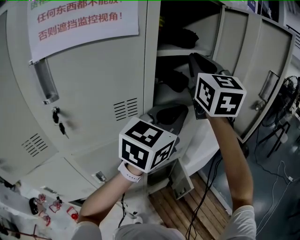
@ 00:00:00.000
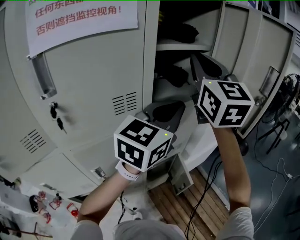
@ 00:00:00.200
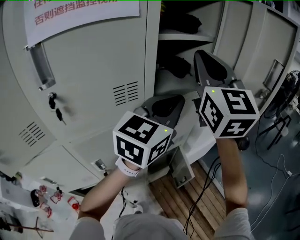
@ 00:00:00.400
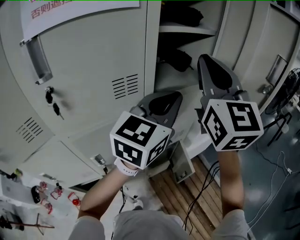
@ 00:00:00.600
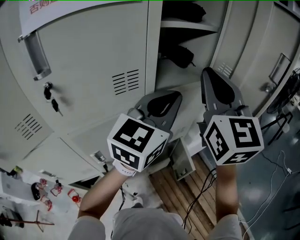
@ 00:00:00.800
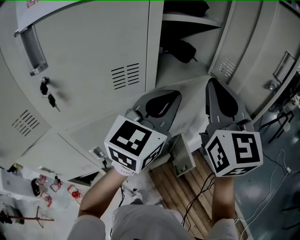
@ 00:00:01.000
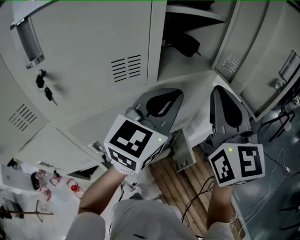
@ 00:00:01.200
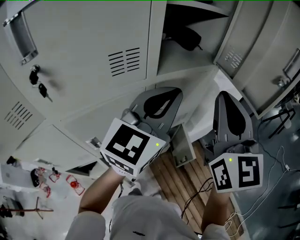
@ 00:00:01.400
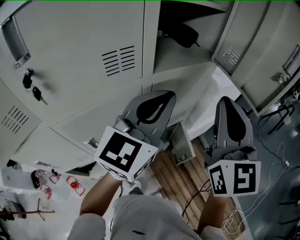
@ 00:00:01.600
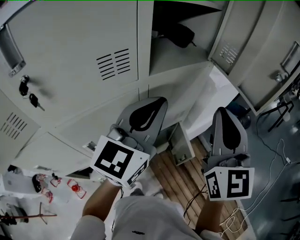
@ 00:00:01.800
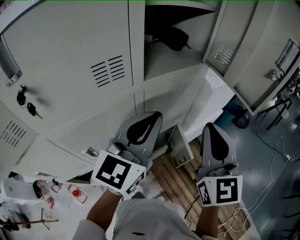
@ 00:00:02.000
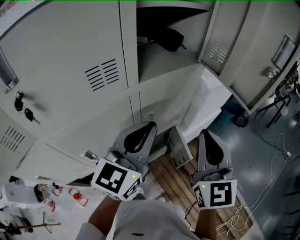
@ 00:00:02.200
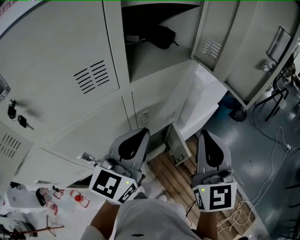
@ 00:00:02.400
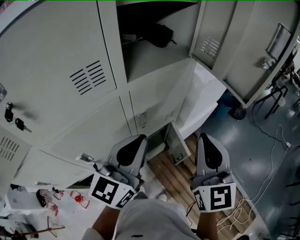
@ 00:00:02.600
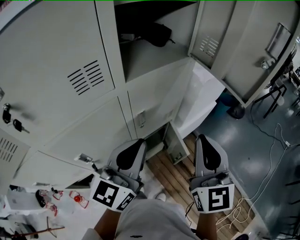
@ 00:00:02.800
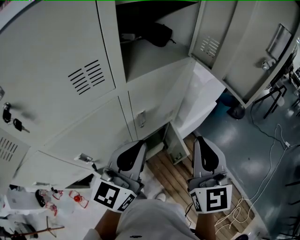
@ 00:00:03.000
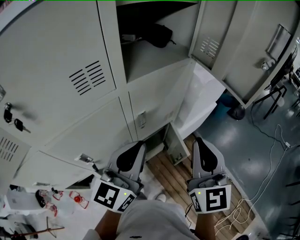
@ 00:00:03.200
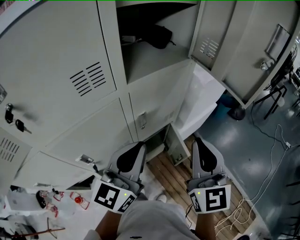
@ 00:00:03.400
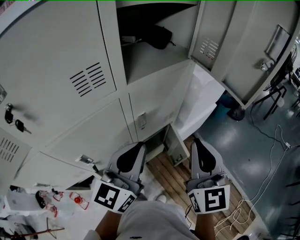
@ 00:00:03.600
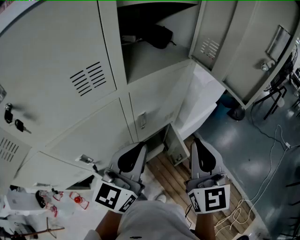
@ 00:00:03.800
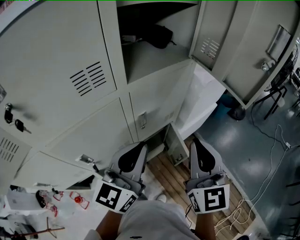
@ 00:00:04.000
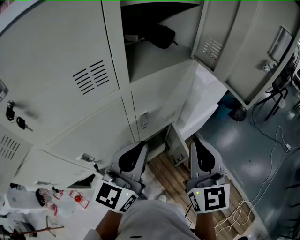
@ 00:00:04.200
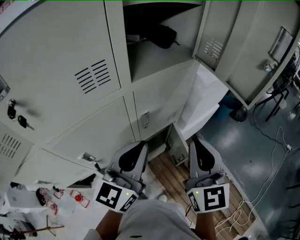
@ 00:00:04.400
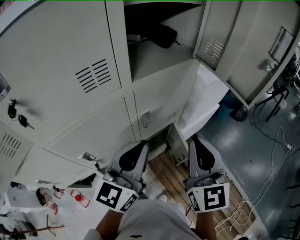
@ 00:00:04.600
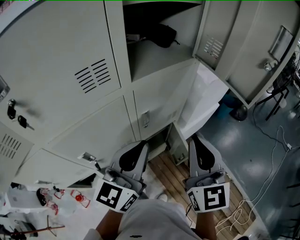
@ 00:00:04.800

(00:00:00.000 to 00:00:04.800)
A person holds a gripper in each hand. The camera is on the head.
00:00:00.000 - 00:00:01.600: The left gripper is displaced downward by about 5 cm; the right gripper heads downward, backward and to the right, covering roughly 25 cm.
00:00:01.600 - 00:00:03.200: The left gripper travels downward and backward by about 10 cm; the right gripper is displaced downward by some 10 cm.
00:00:03.200 - 00:00:04.800: The grippers make only small movements.

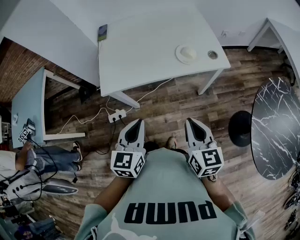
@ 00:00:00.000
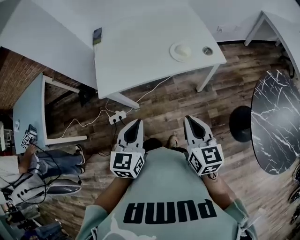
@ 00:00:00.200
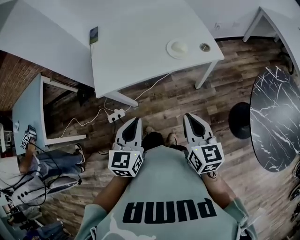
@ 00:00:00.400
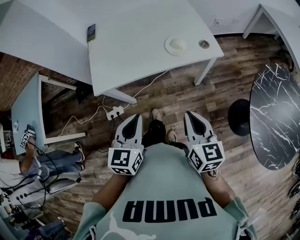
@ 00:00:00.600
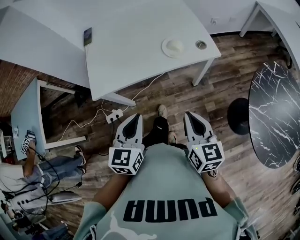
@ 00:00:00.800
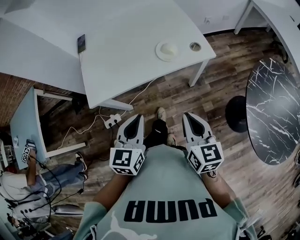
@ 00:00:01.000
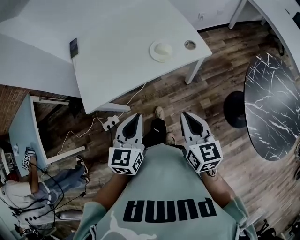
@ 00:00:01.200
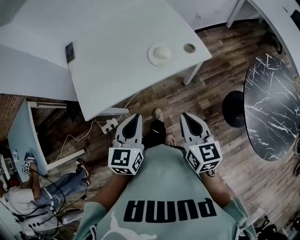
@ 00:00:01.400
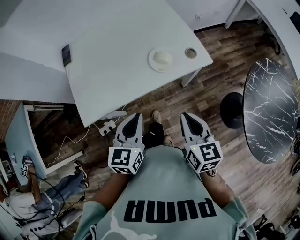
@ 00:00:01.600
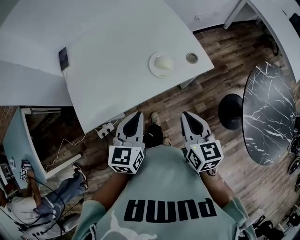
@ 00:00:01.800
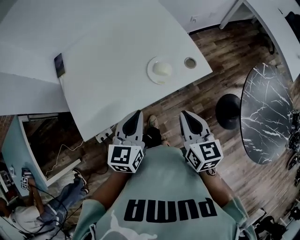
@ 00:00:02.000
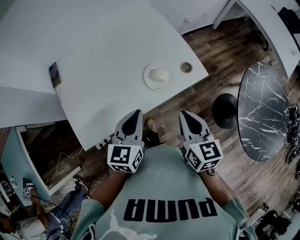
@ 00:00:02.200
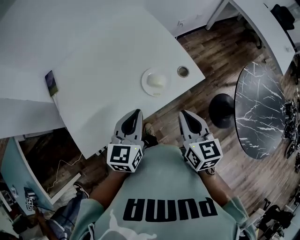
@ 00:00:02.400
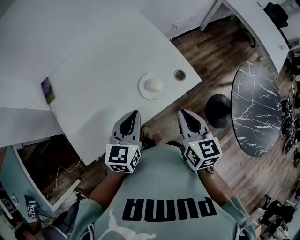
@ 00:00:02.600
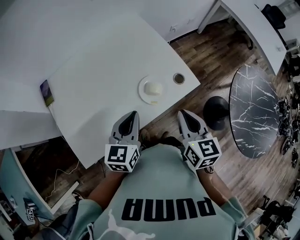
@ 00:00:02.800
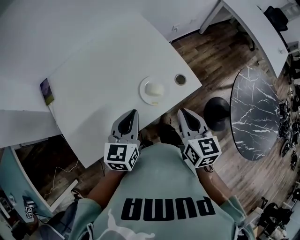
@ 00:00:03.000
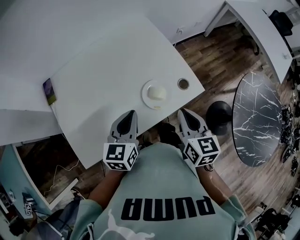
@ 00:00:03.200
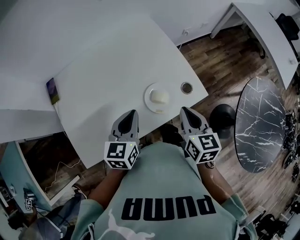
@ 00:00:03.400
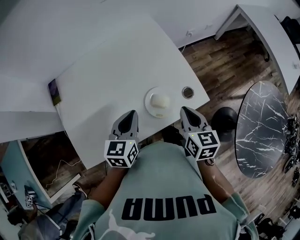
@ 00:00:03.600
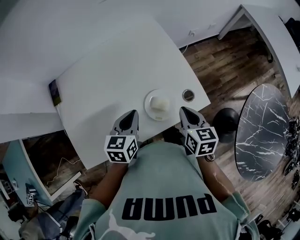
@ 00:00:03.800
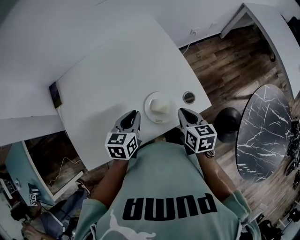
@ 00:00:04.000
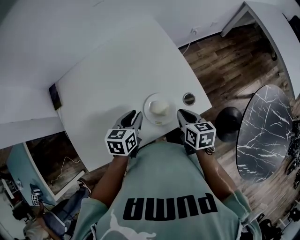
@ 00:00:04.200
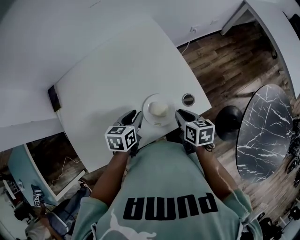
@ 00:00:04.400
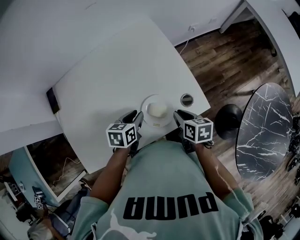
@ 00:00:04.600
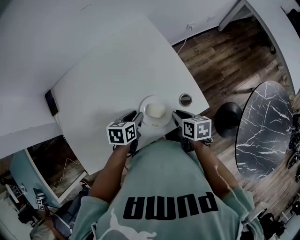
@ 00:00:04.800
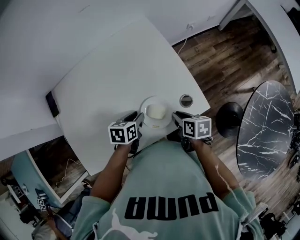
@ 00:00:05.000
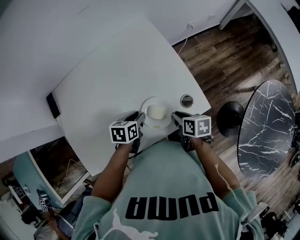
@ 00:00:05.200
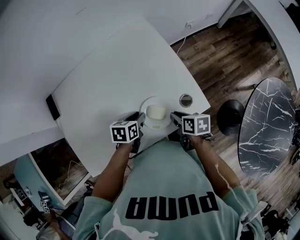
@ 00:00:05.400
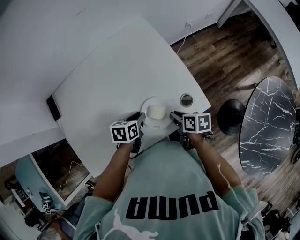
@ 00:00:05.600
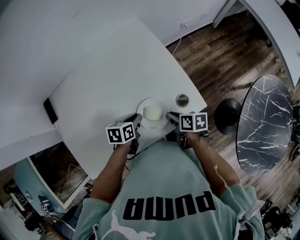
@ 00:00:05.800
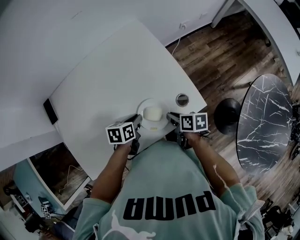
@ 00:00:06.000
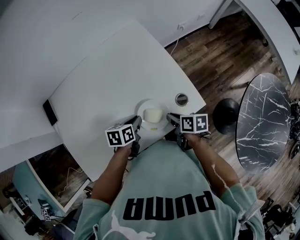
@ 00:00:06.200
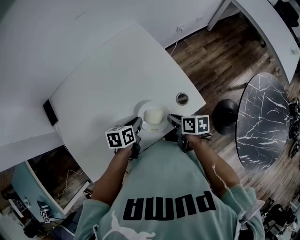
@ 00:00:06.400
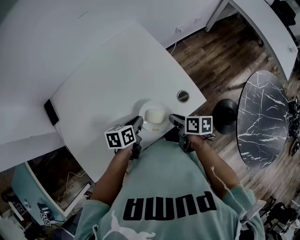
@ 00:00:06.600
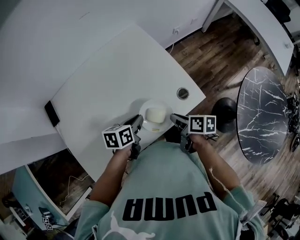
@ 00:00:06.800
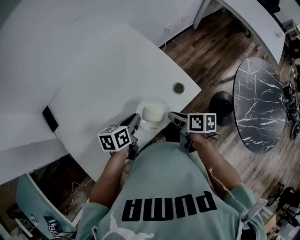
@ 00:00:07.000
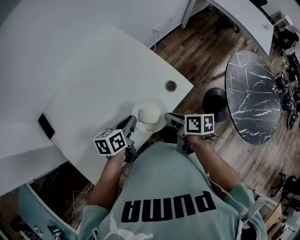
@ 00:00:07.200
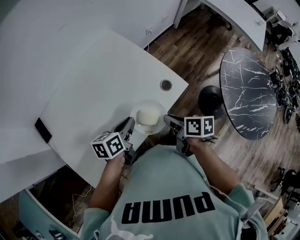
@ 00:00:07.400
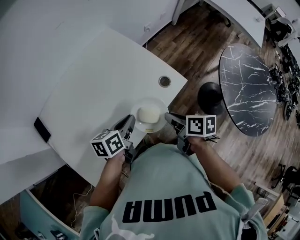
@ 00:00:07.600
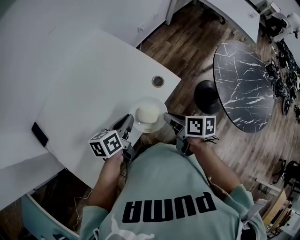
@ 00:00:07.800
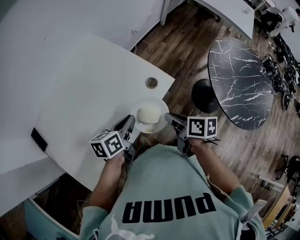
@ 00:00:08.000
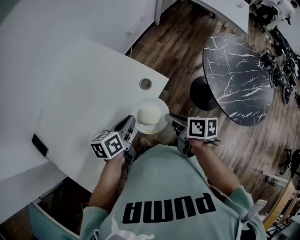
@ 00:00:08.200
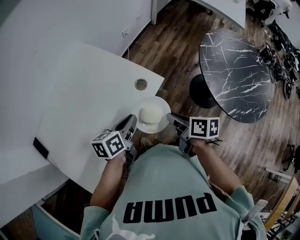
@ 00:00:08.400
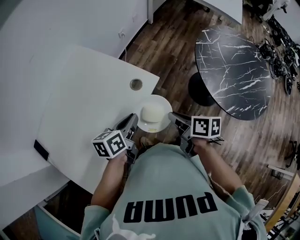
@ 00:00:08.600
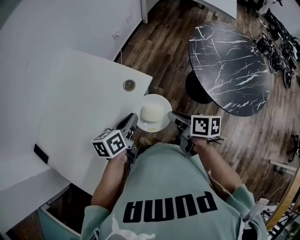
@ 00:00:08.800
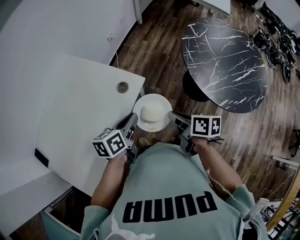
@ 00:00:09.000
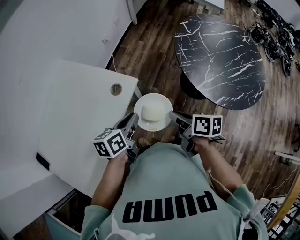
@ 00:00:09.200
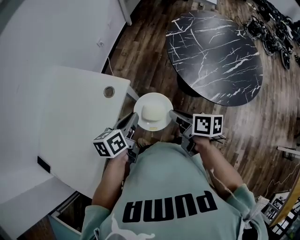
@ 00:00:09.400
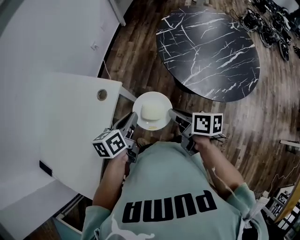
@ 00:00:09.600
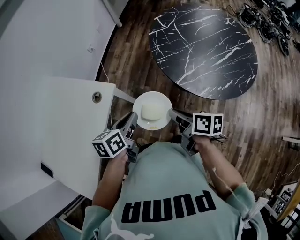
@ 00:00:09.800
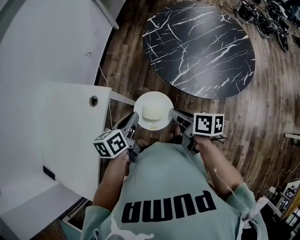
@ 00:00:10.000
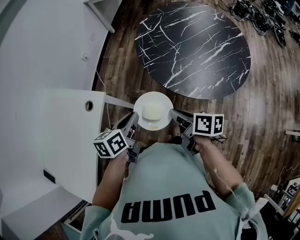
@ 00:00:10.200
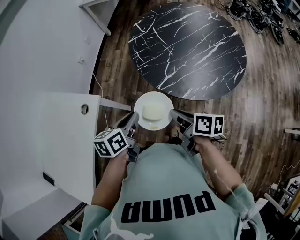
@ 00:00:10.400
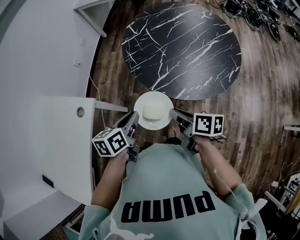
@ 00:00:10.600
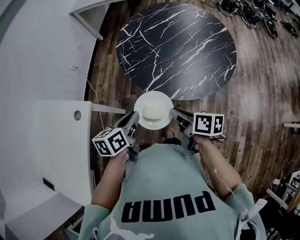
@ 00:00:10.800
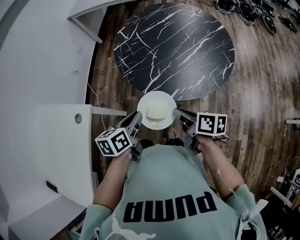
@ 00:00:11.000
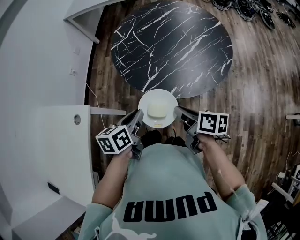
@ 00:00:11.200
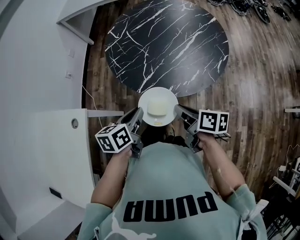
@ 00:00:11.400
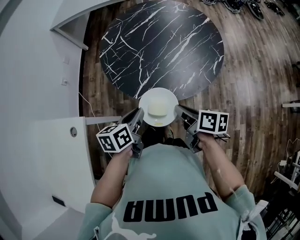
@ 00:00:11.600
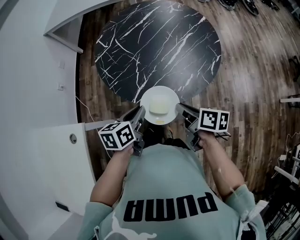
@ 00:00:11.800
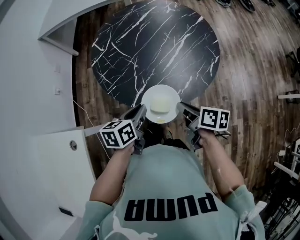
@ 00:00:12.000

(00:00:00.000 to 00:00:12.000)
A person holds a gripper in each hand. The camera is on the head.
00:00:00.000 - 00:00:01.600: The grippers both shift forward and to the right by roughly 15 cm.
00:00:01.600 - 00:00:03.000: The two grippers go some 15 cm forward.
00:00:03.000 - 00:00:04.400: The grippers both shift downward and forward by some 15 cm. The left gripper swivels some 30 degrees, and opens its fingers. Meanwhile the right gripper swivels approximately 30 degrees.
00:00:04.400 - 00:00:06.000: Both grippers move downward, roughly 5 cm. The right gripper rotates approximately 20 degrees.
00:00:06.000 - 00:00:07.600: Both grippers travel together upward and backward, about 15 cm. The right gripper rotates about 20 degrees. Meanwhile the left gripper swivels about 20 degrees.
00:00:07.600 - 00:00:09.000: The two grippers go approximately 20 cm to the right.
00:00:09.000 - 00:00:10.400: The grippers both shift to the right by about 25 cm.
00:00:10.400 - 00:00:12.000: Both grippers travel together to the right and forward, roughly 20 cm. The left gripper swivels roughly 20 degrees. The right gripper turns by approximately 20 degrees.

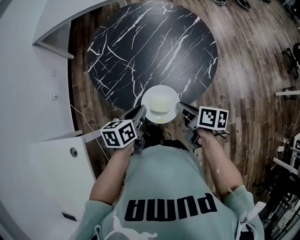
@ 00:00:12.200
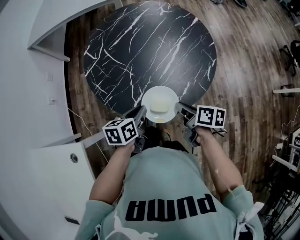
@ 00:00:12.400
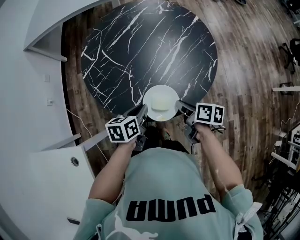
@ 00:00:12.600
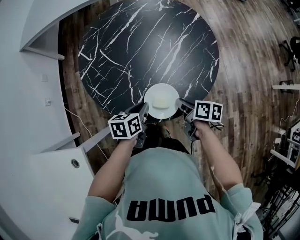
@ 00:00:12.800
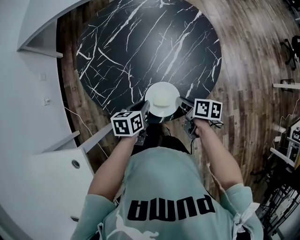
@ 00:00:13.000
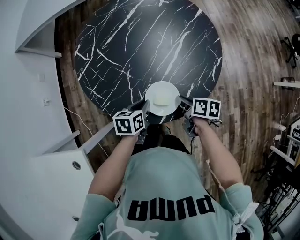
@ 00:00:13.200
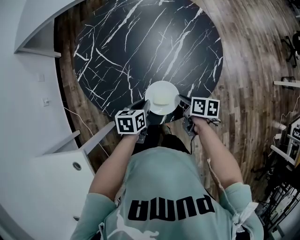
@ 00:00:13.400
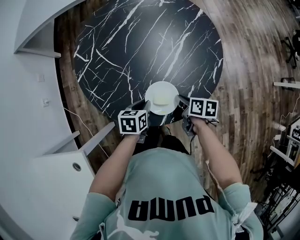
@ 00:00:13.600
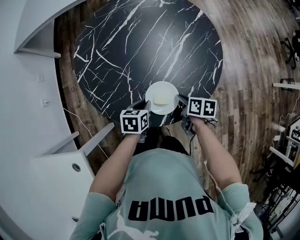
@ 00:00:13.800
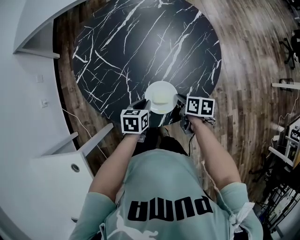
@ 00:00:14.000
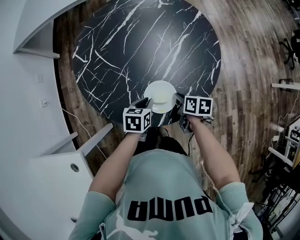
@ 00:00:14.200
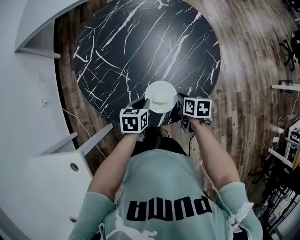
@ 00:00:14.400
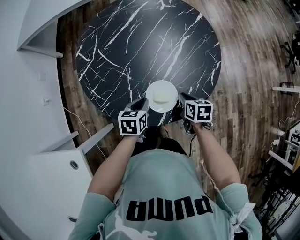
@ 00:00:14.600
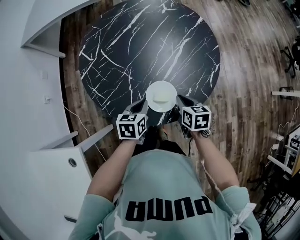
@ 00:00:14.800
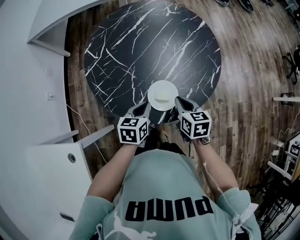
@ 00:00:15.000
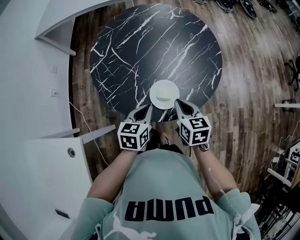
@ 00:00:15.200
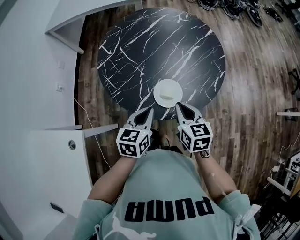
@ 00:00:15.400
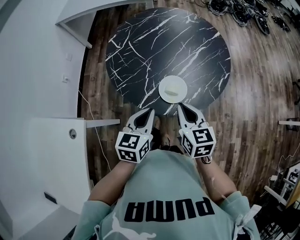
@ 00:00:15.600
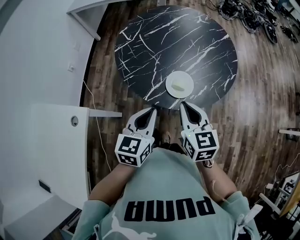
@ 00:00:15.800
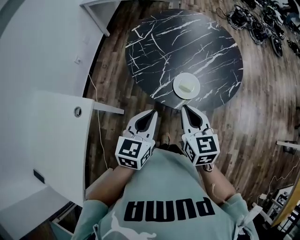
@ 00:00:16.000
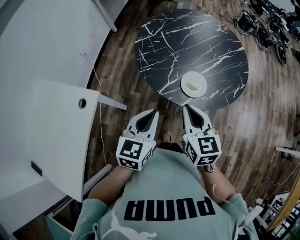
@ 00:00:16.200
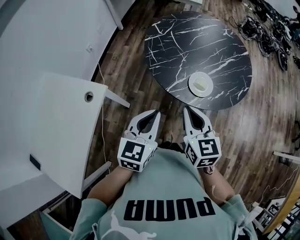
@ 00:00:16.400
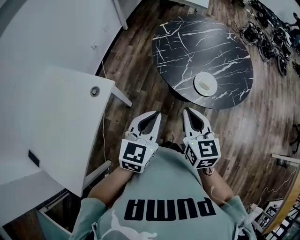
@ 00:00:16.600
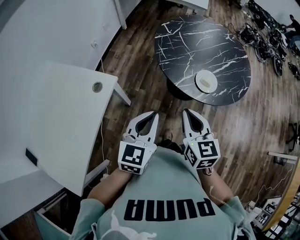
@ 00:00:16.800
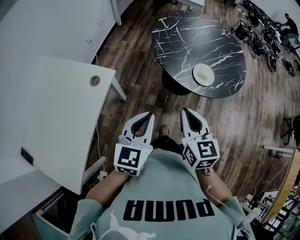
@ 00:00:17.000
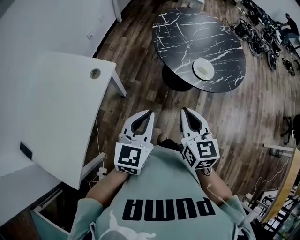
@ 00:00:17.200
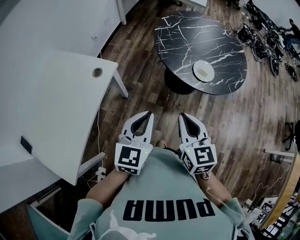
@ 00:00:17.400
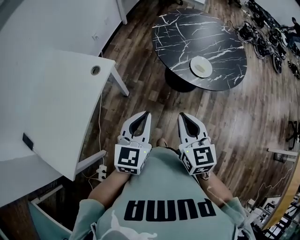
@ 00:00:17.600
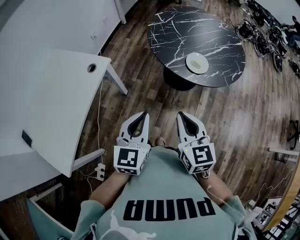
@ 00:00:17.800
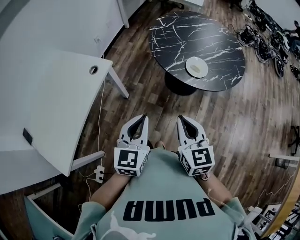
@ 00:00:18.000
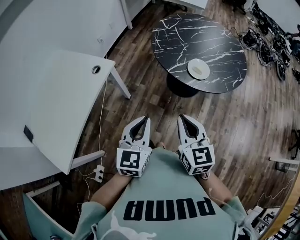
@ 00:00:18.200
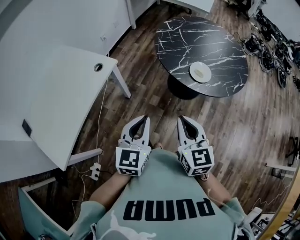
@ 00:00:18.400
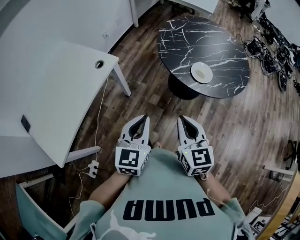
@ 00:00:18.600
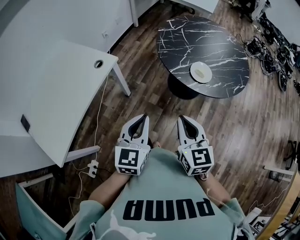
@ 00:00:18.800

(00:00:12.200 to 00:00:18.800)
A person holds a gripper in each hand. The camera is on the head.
00:00:12.200 - 00:00:13.800: Both grippers move downward and forward, some 15 cm. The left gripper turns by roughly 20 degrees.
00:00:13.800 - 00:00:15.400: Both grippers travel together upward and backward, about 20 cm. The left gripper rotates approximately 30 degrees. Meanwhile the right gripper rotates approximately 40 degrees.
00:00:15.400 - 00:00:17.200: The left gripper heads backward and to the left, covering roughly 35 cm, and rotates some 30 degrees. The right gripper is displaced backward, to the left and upward by some 35 cm, and turns by about 20 degrees.
00:00:17.200 - 00:00:18.800: The left gripper moves backward and to the right, approximately 10 cm. The right gripper travels to the right and backward by about 10 cm.
